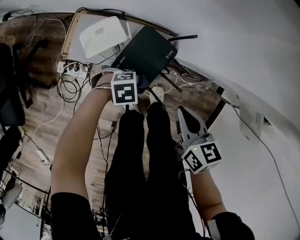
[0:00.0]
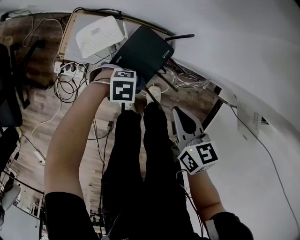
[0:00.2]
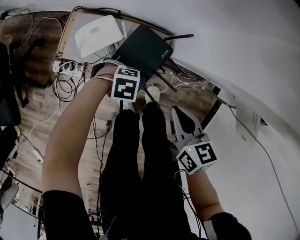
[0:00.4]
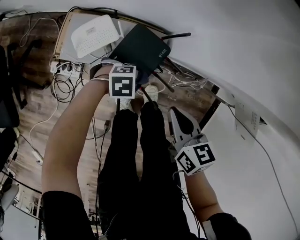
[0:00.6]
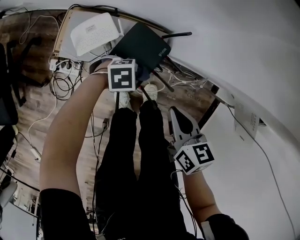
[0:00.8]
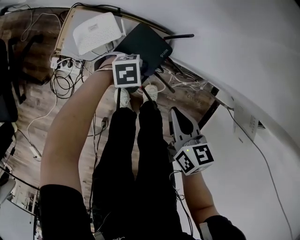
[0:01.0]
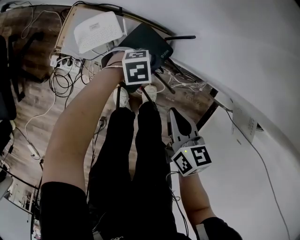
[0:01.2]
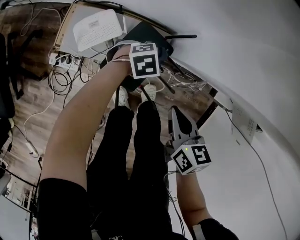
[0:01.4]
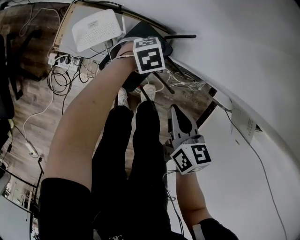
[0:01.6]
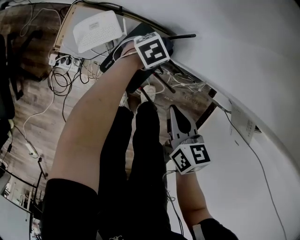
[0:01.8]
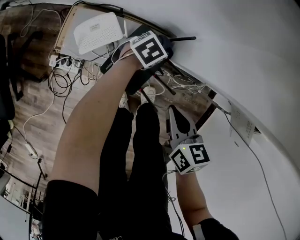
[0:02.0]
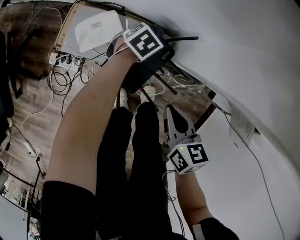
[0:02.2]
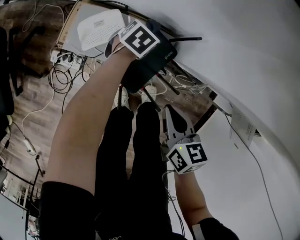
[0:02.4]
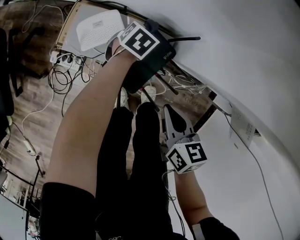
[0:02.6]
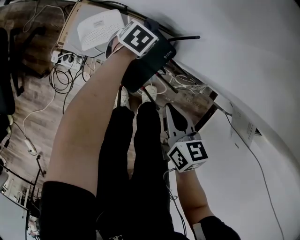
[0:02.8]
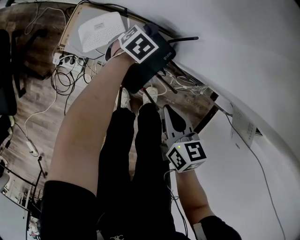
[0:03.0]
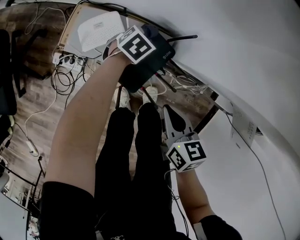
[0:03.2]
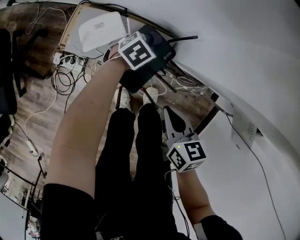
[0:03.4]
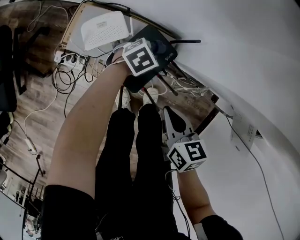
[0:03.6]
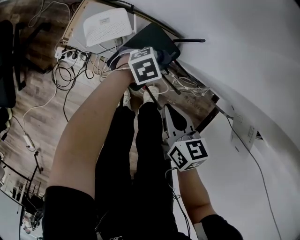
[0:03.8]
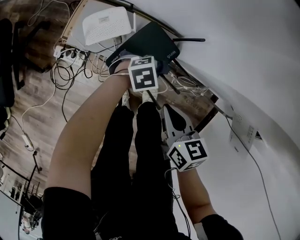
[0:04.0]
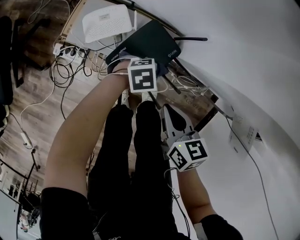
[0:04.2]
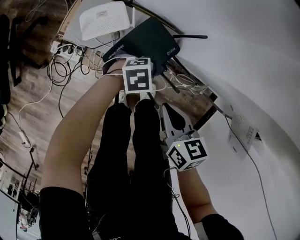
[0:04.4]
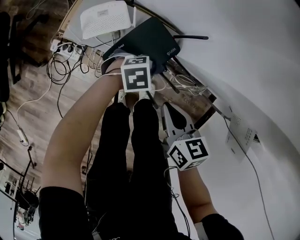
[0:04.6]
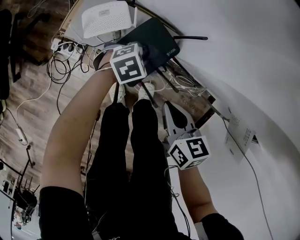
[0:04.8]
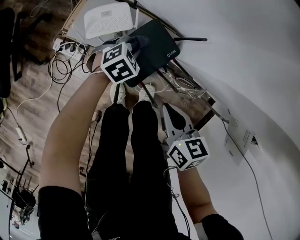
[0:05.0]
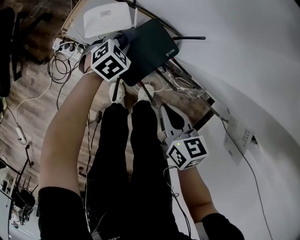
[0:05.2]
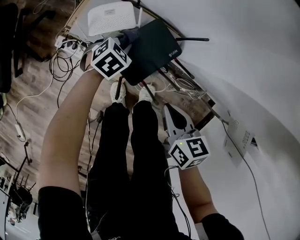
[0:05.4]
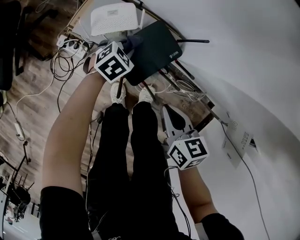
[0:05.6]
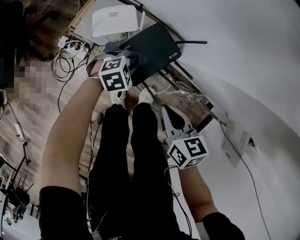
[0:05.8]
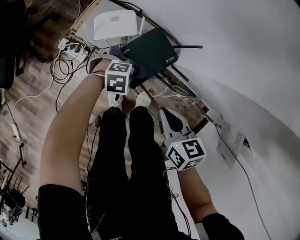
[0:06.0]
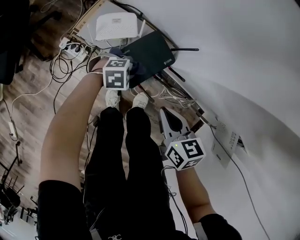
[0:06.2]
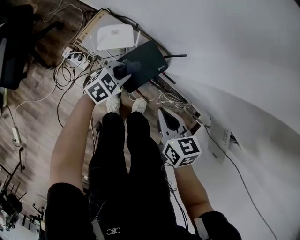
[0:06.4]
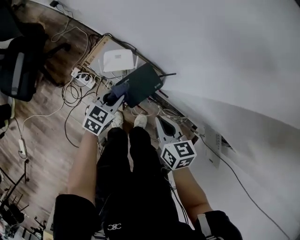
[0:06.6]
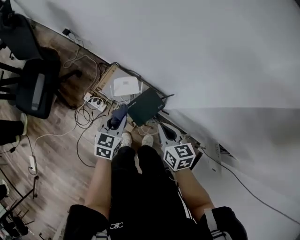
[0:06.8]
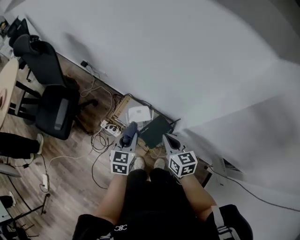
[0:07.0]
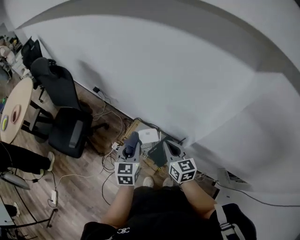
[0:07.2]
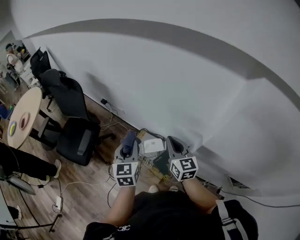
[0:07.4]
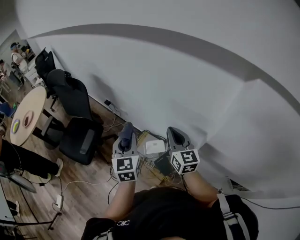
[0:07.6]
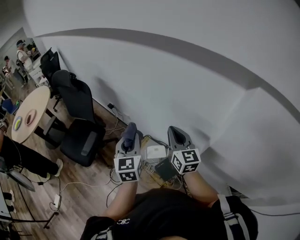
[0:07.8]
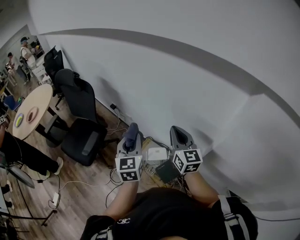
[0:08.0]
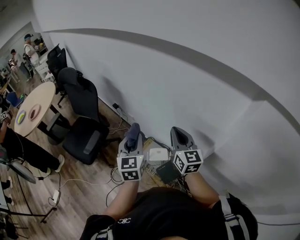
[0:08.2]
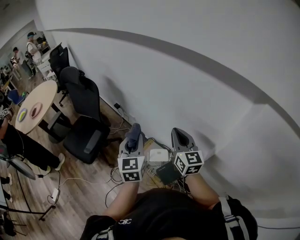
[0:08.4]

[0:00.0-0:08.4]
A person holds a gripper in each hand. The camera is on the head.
0:00.0 to 0:01.4: The left gripper moves roughly 15 cm.
0:01.4 to 0:02.8: The left gripper ends up roughly 15 cm from where it was, and changes its angle by approximately 40 degrees.
0:02.8 to 0:04.2: The left gripper changes place by about 20 cm, and changes its angle by about 40 degrees.
0:04.2 to 0:05.6: The left gripper moves some 15 cm, and rotates approximately 40 degrees.
0:05.6 to 0:07.0: The two grippers go roughly 40 cm upward. The right gripper swivels approximately 30 degrees; the left gripper tilts its fingers roughly 30 degrees upward.
0:07.0 to 0:08.4: The left gripper moves upward, roughly 25 cm, and swivels approximately 30 degrees; the right gripper goes some 30 cm upward and forward, and changes its angle by some 30 degrees.

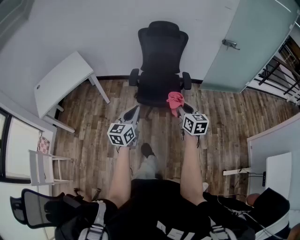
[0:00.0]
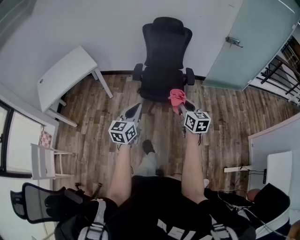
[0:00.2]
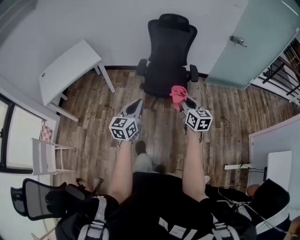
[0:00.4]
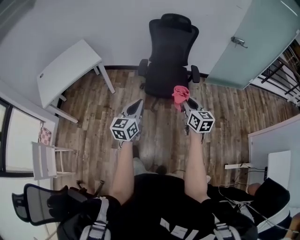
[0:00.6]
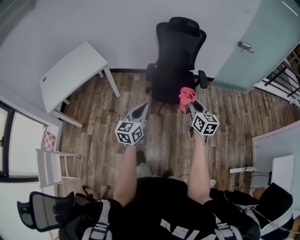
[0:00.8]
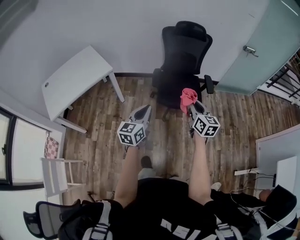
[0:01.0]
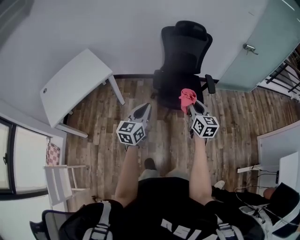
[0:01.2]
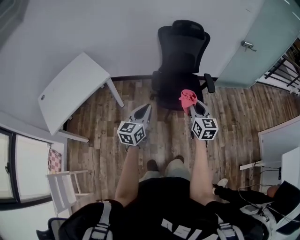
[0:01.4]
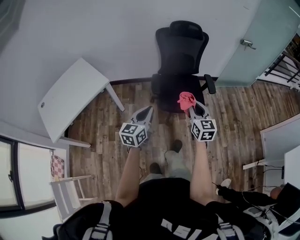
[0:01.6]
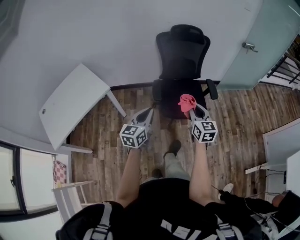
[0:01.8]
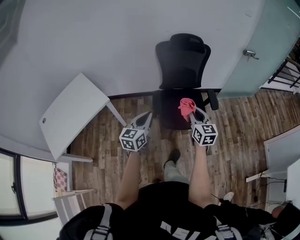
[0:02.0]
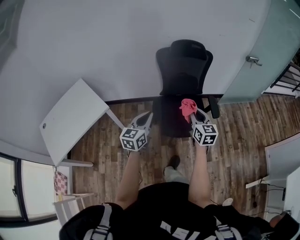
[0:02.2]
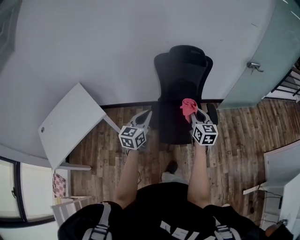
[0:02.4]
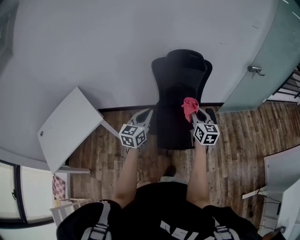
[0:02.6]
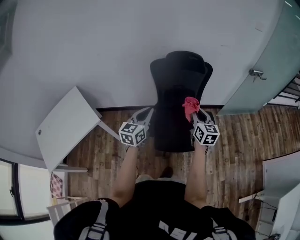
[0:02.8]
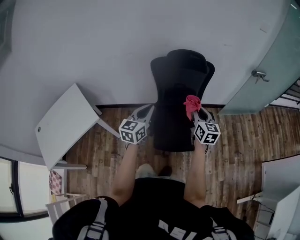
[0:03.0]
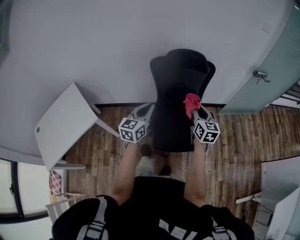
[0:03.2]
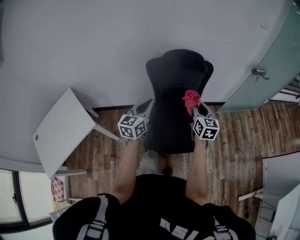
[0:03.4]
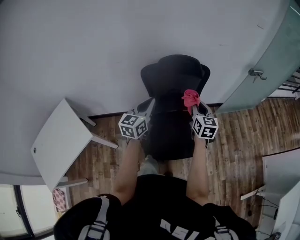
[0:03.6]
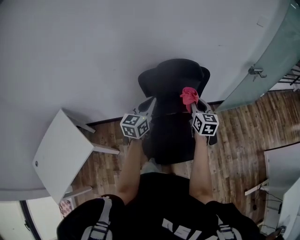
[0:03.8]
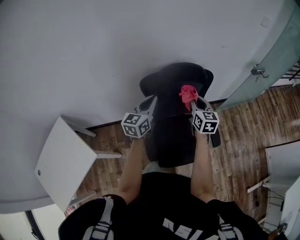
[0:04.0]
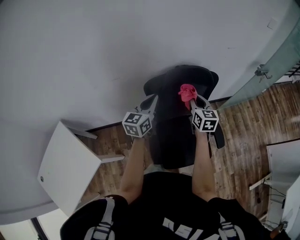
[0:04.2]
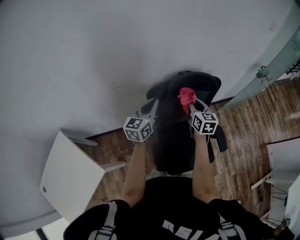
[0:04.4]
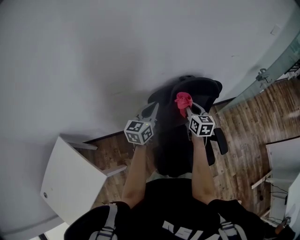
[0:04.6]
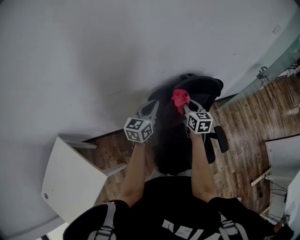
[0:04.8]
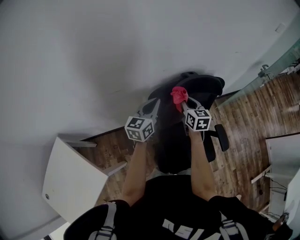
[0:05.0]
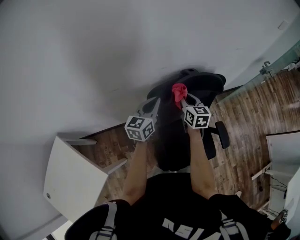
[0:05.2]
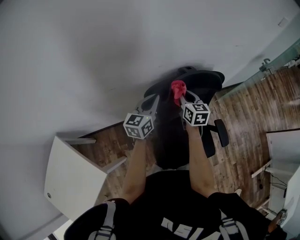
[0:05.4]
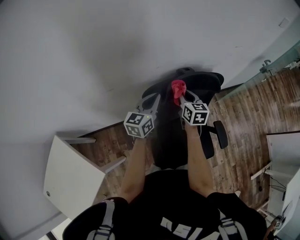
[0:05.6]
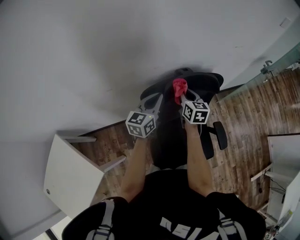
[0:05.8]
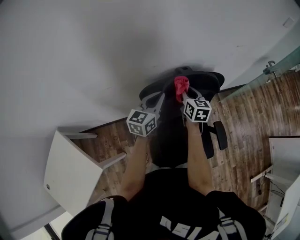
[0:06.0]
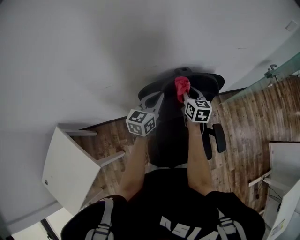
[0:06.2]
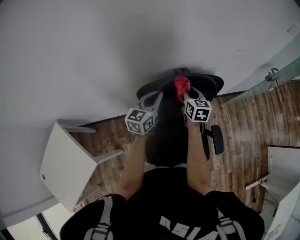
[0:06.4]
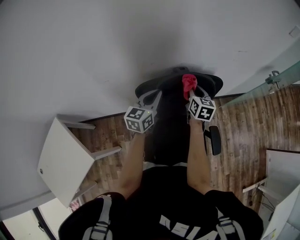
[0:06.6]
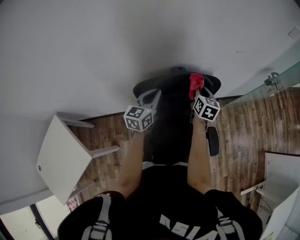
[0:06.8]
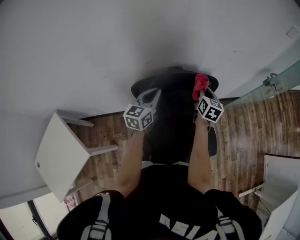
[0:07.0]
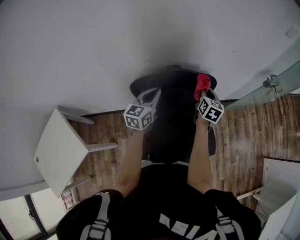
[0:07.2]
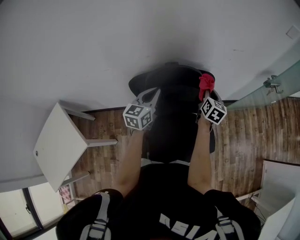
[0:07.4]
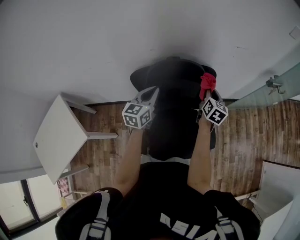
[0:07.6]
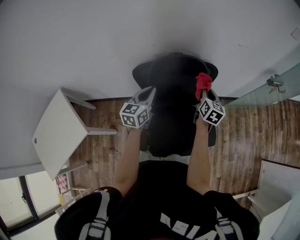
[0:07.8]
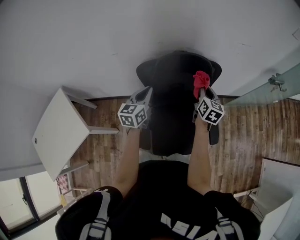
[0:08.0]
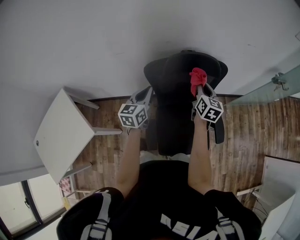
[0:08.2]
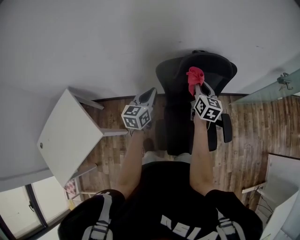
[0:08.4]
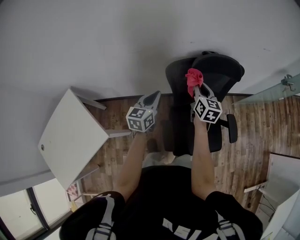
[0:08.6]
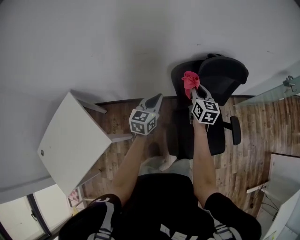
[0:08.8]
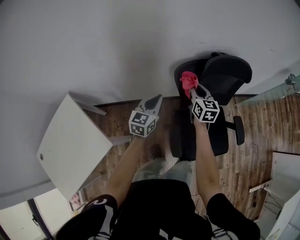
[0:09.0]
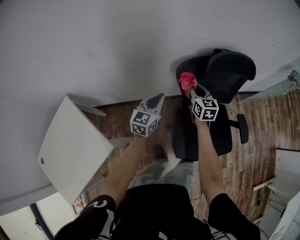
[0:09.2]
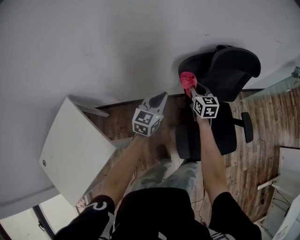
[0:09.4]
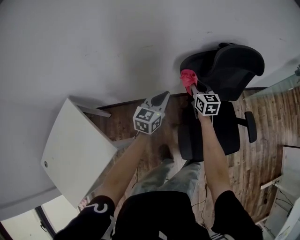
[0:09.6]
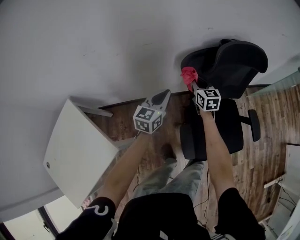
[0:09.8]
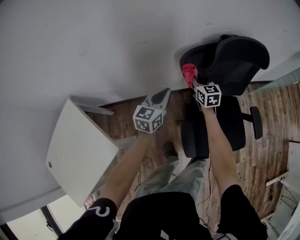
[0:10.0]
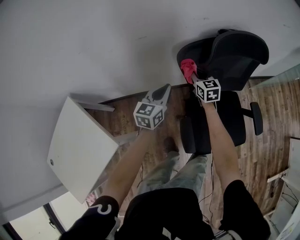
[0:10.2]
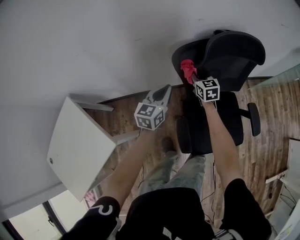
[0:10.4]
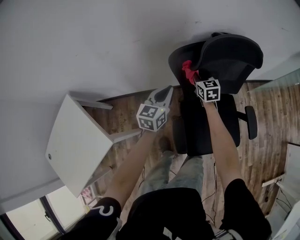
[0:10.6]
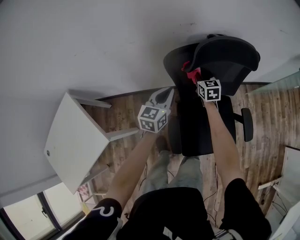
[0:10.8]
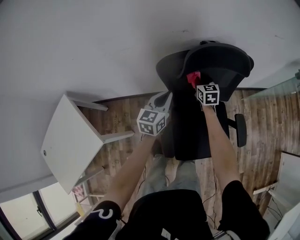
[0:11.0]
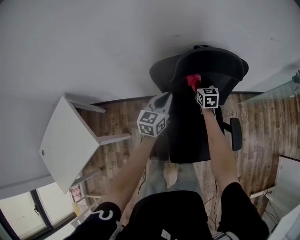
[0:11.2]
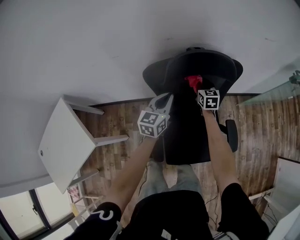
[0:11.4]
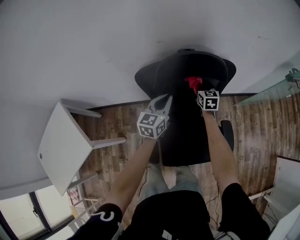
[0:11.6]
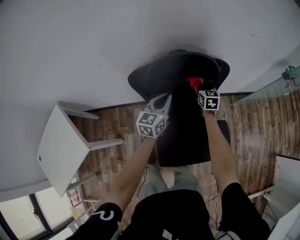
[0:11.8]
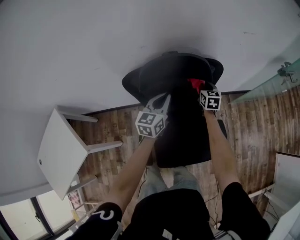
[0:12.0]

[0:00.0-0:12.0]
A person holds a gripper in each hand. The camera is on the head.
0:00.0 to 0:01.6: The grippers both shift to the left and forward by some 25 cm.
0:01.6 to 0:03.0: Both grippers travel together forward, roughly 35 cm.
0:03.0 to 0:04.4: The left gripper goes approximately 35 cm forward, while the right gripper shifts roughly 35 cm forward and to the left.
0:04.4 to 0:06.0: The left gripper travels forward and to the right by approximately 10 cm; the right gripper goes some 10 cm forward.
0:06.0 to 0:07.6: The left gripper moves backward and to the right, roughly 10 cm. The right gripper heads to the right, covering approximately 20 cm.
0:07.6 to 0:09.0: The right gripper goes approximately 35 cm to the left. Meanwhile the left gripper heads to the left and downward, covering roughly 25 cm.
0:09.0 to 0:10.4: The left gripper goes roughly 5 cm downward, while the right gripper heads downward and forward, covering about 15 cm.
0:10.4 to 0:12.0: The two grippers go approximately 30 cm to the right.

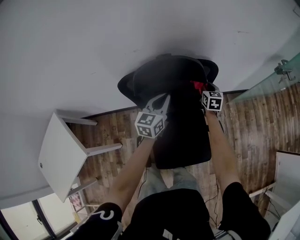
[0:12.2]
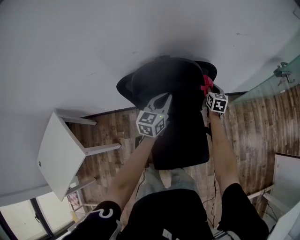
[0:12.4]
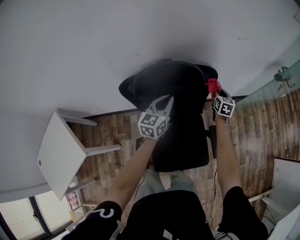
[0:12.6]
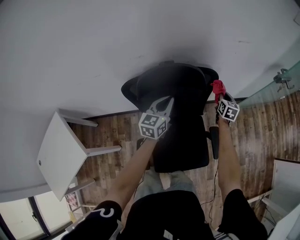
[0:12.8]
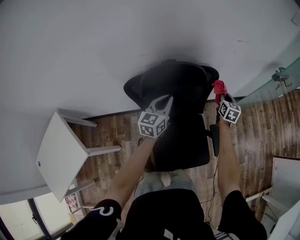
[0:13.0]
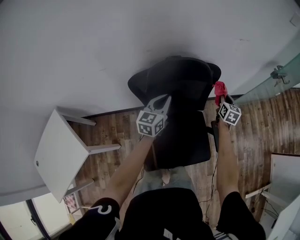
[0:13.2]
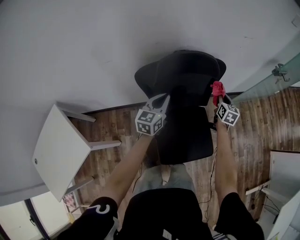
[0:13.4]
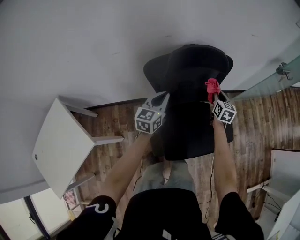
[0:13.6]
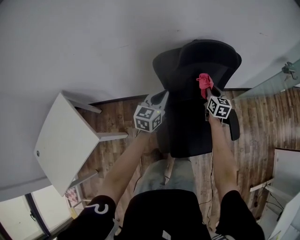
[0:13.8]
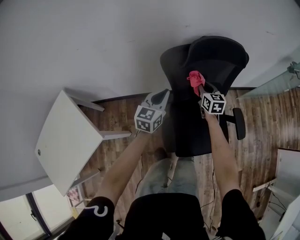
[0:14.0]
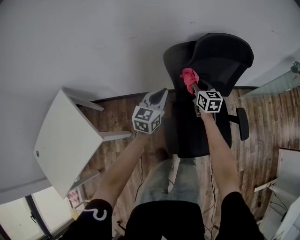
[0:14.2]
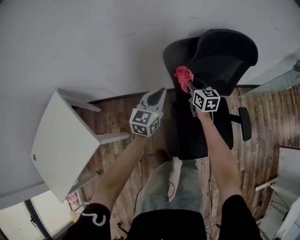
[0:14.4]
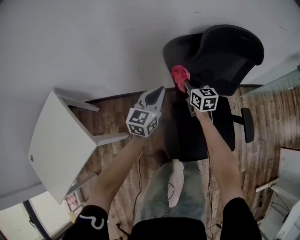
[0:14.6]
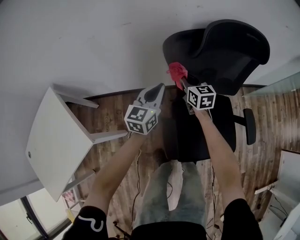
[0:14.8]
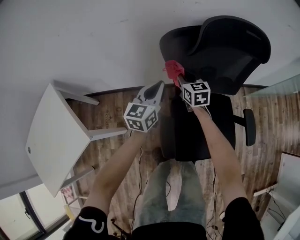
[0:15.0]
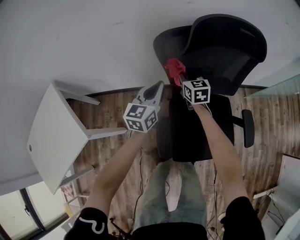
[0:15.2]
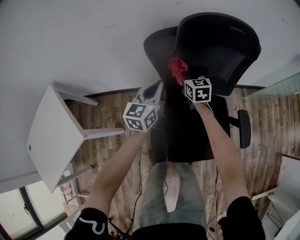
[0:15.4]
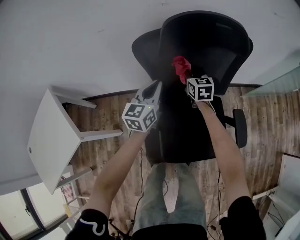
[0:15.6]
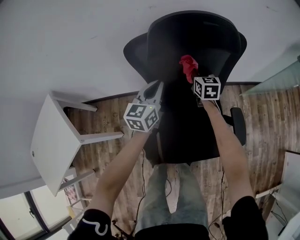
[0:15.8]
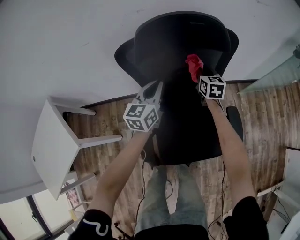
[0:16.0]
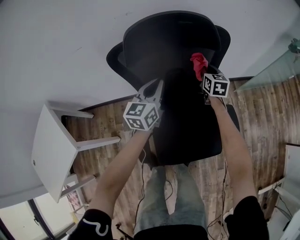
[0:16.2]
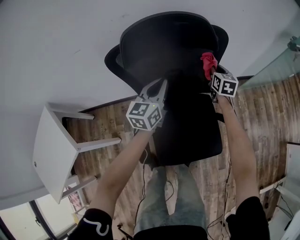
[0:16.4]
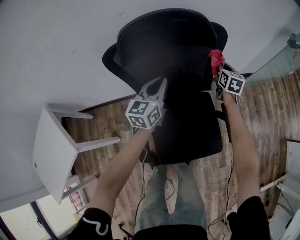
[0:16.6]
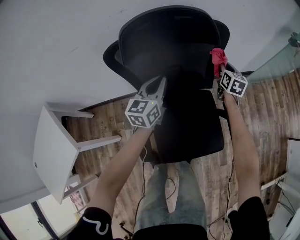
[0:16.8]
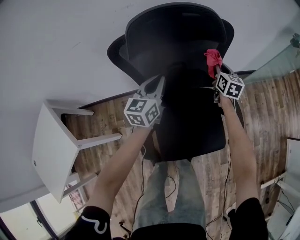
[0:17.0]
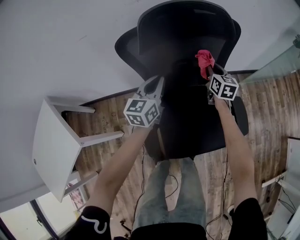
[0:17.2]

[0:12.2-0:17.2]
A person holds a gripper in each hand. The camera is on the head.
0:12.2 to 0:13.8: The right gripper shifts some 20 cm backward and to the left. The left gripper shifts some 20 cm to the left and backward.
0:13.8 to 0:15.6: The right gripper travels downward, to the left and forward by approximately 15 cm. The left gripper goes some 10 cm downward, and reaches approximately 10 cm to the left, then returns.
0:15.6 to 0:17.2: The left gripper travels to the right by some 5 cm. The right gripper goes approximately 15 cm to the right.
